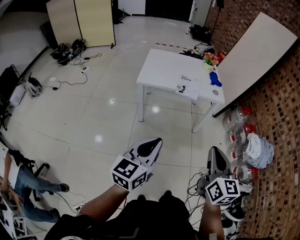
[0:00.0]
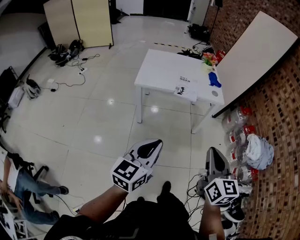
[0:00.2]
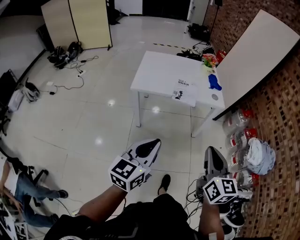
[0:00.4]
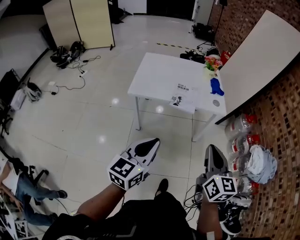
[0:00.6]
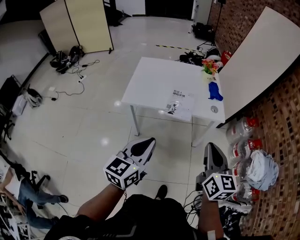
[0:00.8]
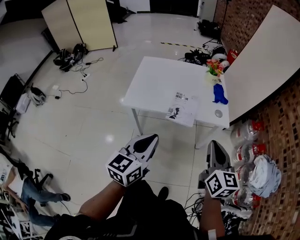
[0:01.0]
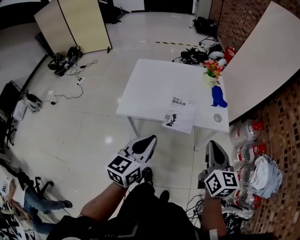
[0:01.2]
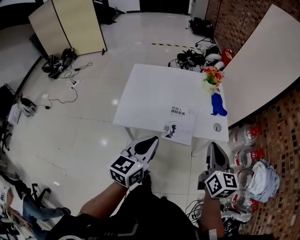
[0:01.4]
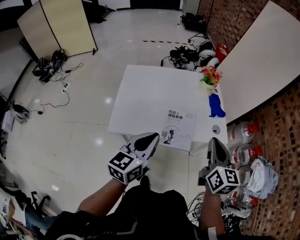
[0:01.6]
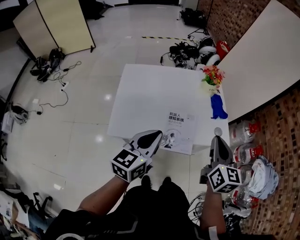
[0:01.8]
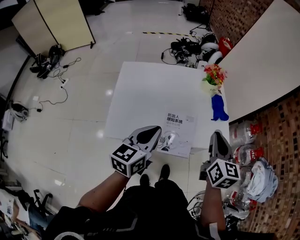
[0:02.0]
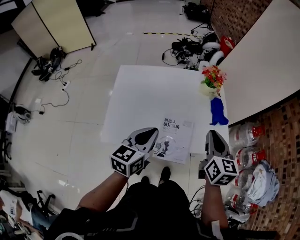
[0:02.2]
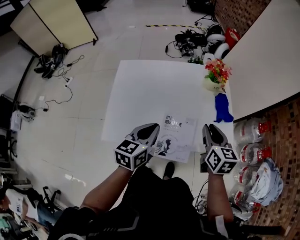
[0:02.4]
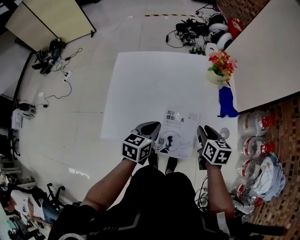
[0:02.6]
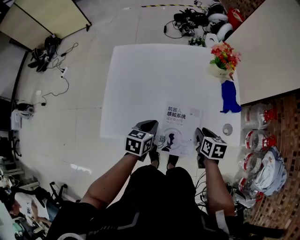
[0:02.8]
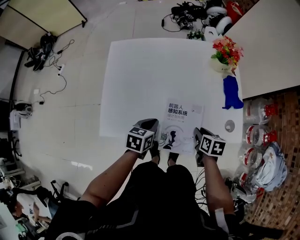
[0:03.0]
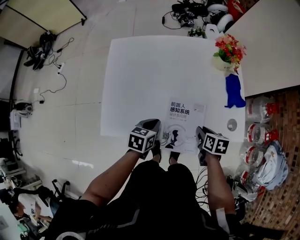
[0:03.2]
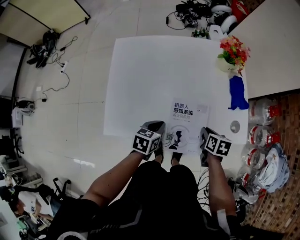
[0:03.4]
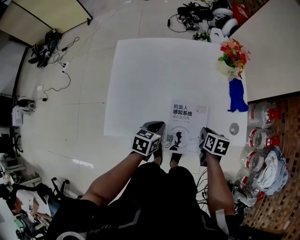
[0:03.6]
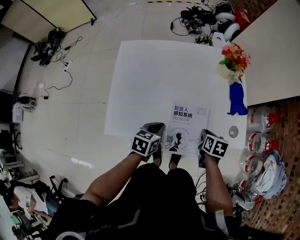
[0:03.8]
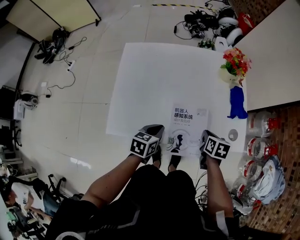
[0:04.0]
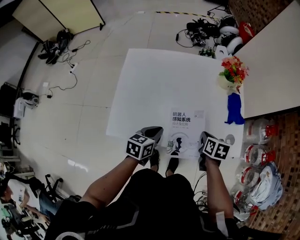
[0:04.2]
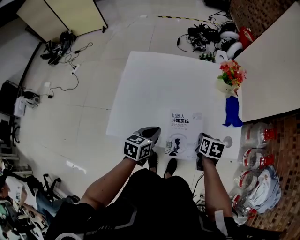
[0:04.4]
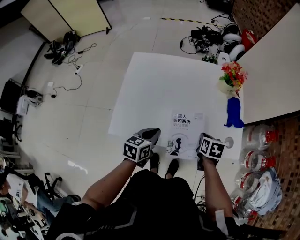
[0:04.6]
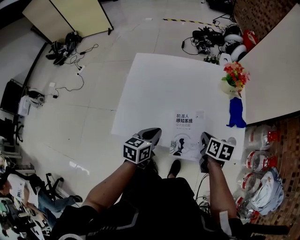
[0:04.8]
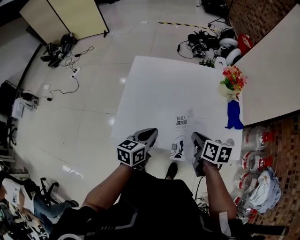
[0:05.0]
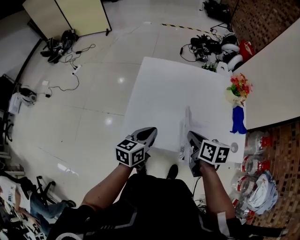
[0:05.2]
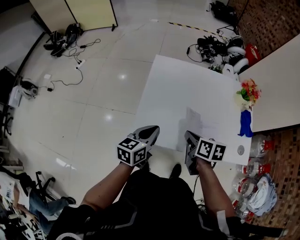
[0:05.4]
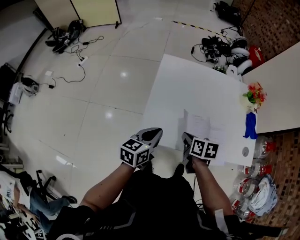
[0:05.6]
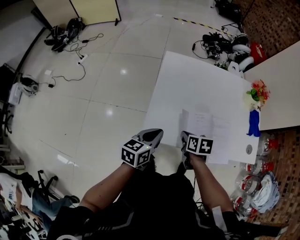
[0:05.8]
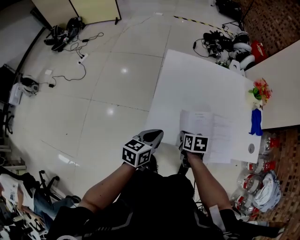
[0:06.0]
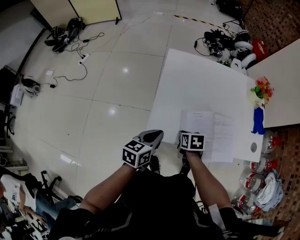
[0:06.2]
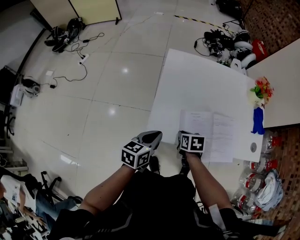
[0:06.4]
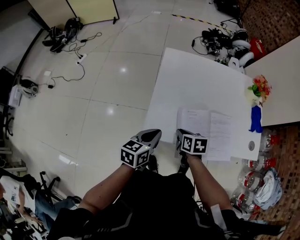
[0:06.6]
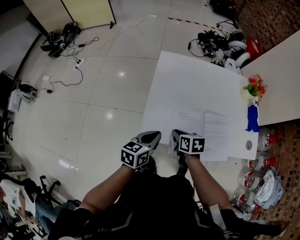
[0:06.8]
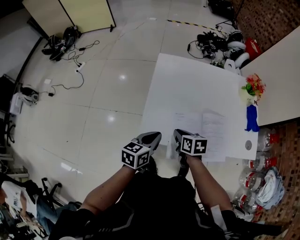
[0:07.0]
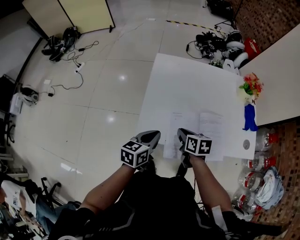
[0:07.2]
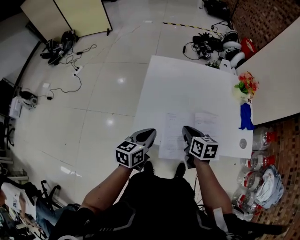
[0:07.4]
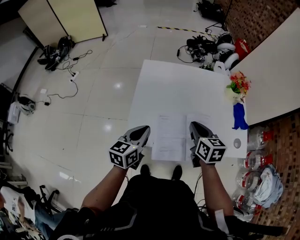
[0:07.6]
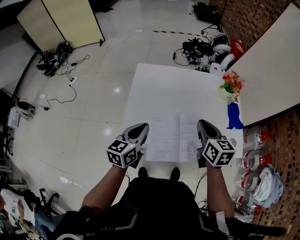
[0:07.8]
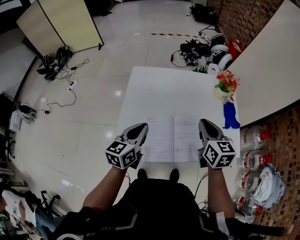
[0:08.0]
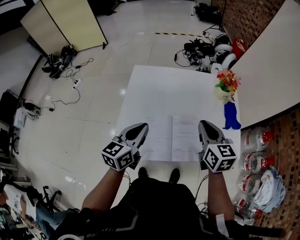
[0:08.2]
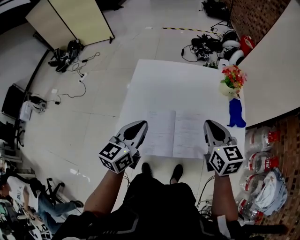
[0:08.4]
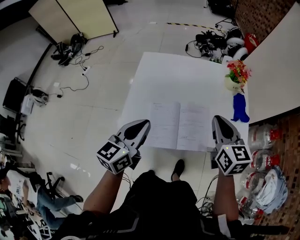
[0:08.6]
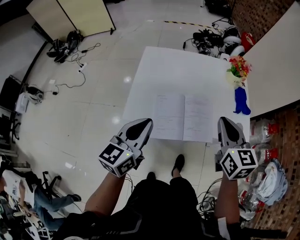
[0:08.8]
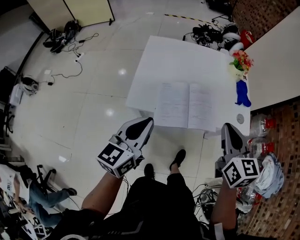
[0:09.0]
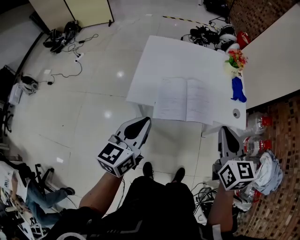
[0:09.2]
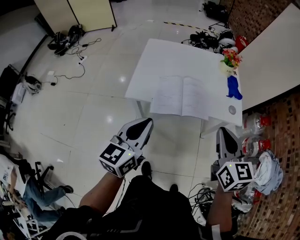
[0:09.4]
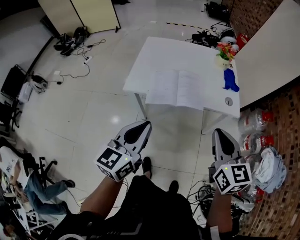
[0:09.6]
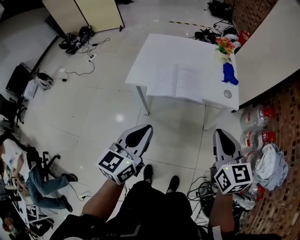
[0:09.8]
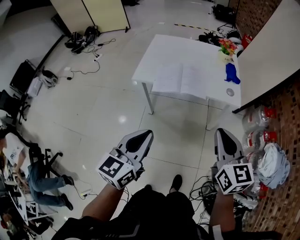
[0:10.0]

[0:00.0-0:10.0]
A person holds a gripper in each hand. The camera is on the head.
0:00.0 to 0:01.4: Both grippers are carried forward, about 50 cm.
0:01.4 to 0:02.8: The right gripper shifts some 35 cm downward and forward, tilts its fingers approximately 40 degrees downward, and opens. Meanwhile the left gripper shifts approximately 35 cm forward and downward, and tips its fingers downward by approximately 30 degrees.
0:02.8 to 0:04.2: The grippers make only small movements.
0:04.2 to 0:05.8: Both grippers move to the left, some 30 cm.
0:05.8 to 0:07.2: The grippers stay close to where they were, moving slightly.
0:07.2 to 0:08.6: The left gripper moves upward and to the right, approximately 20 cm, and turns by approximately 20 degrees, while the right gripper travels to the right and upward by approximately 30 cm, and changes its angle by roughly 40 degrees.
0:08.6 to 0:10.0: The pair of grippers is taken backward, some 40 cm.

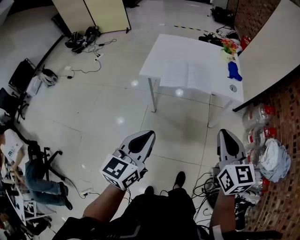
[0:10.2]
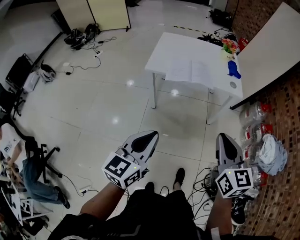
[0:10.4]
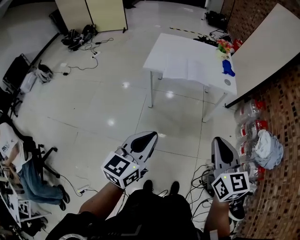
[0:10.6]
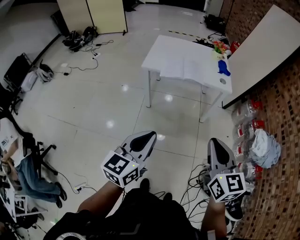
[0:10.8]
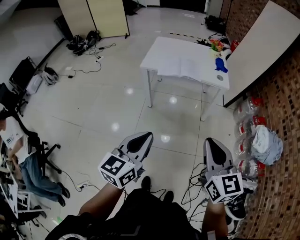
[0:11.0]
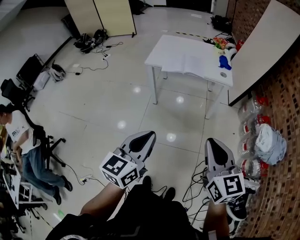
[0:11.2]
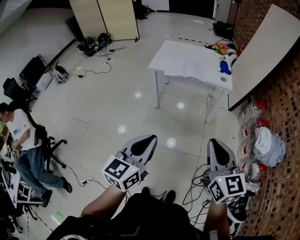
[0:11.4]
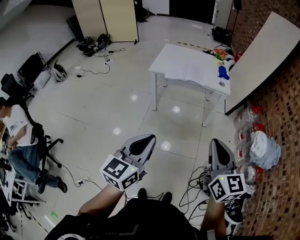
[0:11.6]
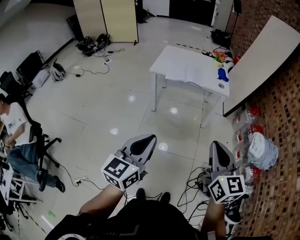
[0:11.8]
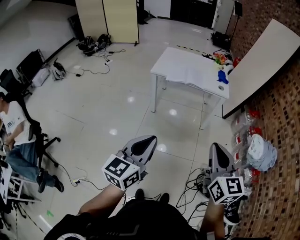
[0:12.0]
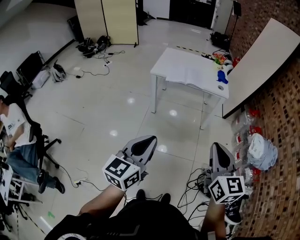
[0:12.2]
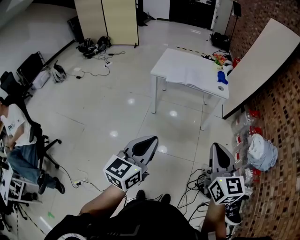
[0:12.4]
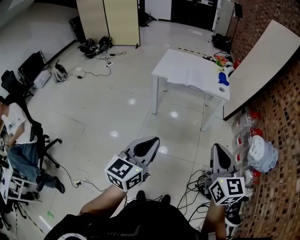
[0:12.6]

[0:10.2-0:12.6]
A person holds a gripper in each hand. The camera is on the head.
0:10.2 to 0:11.4: Both grippers travel together backward, approximately 30 cm.
0:11.4 to 0:12.6: The left gripper ends up some 5 cm from where it was, while the right gripper shifts by roughly 5 cm.

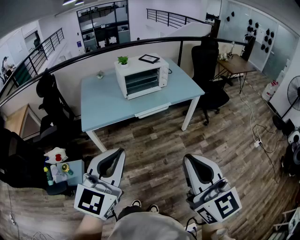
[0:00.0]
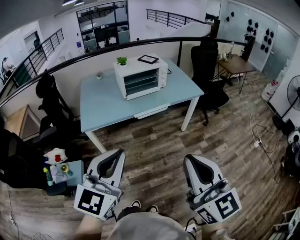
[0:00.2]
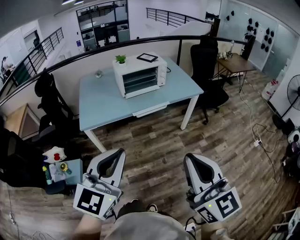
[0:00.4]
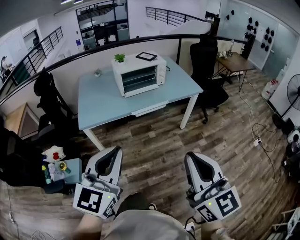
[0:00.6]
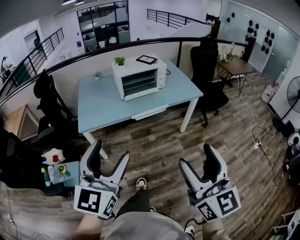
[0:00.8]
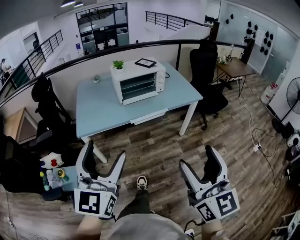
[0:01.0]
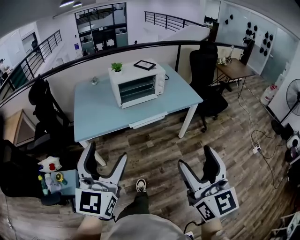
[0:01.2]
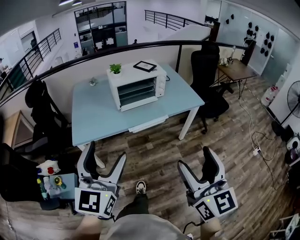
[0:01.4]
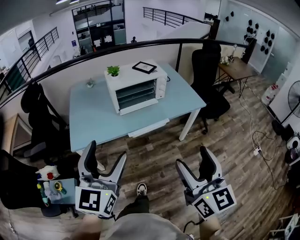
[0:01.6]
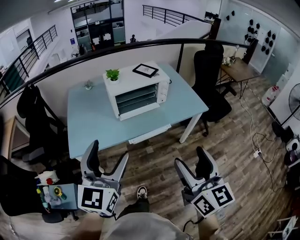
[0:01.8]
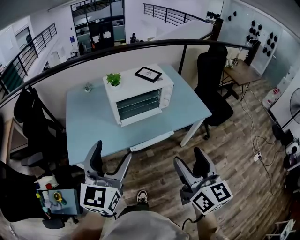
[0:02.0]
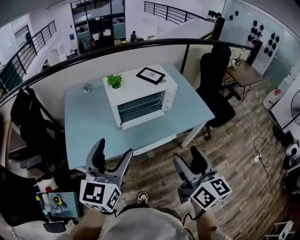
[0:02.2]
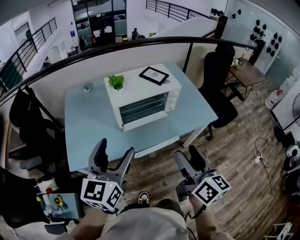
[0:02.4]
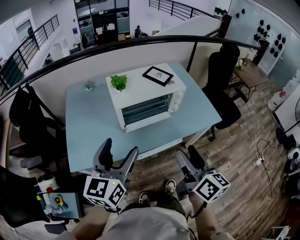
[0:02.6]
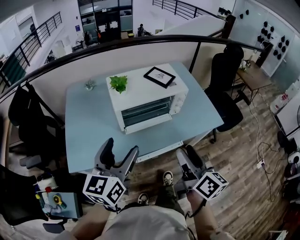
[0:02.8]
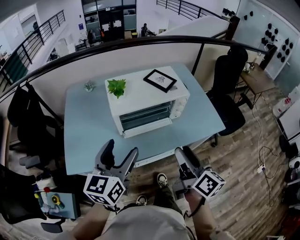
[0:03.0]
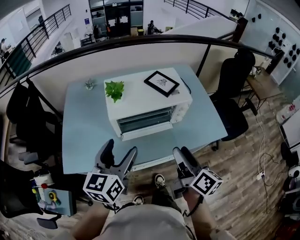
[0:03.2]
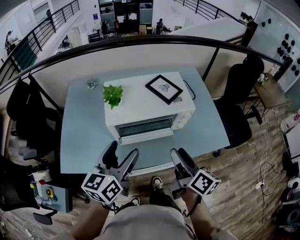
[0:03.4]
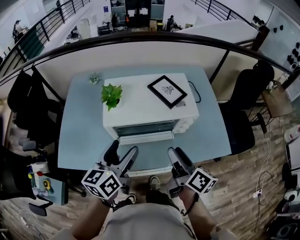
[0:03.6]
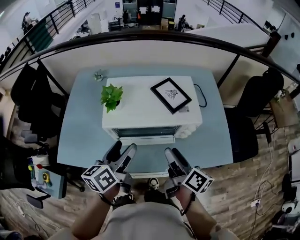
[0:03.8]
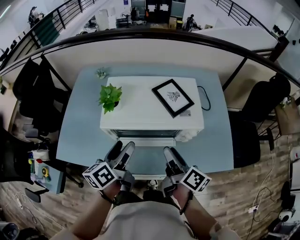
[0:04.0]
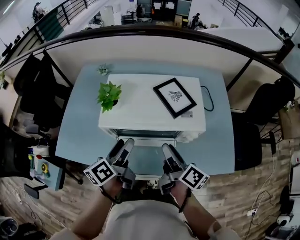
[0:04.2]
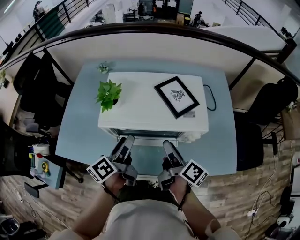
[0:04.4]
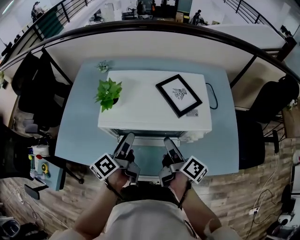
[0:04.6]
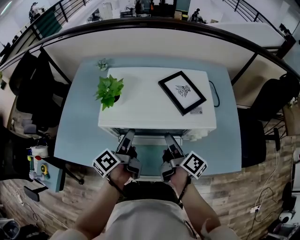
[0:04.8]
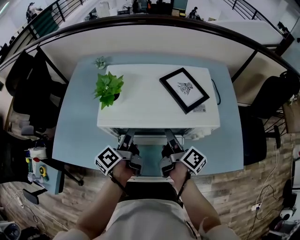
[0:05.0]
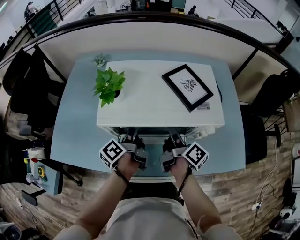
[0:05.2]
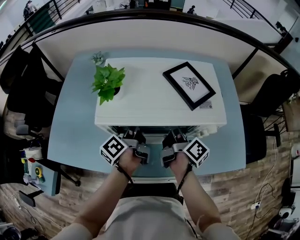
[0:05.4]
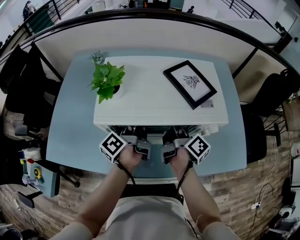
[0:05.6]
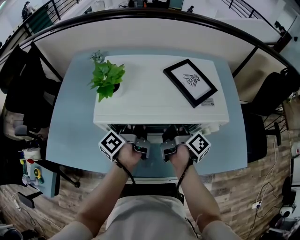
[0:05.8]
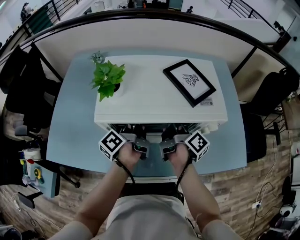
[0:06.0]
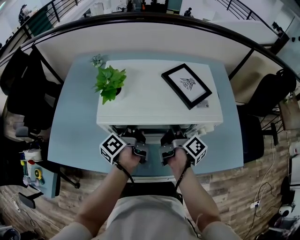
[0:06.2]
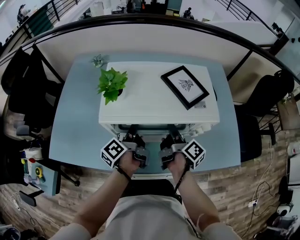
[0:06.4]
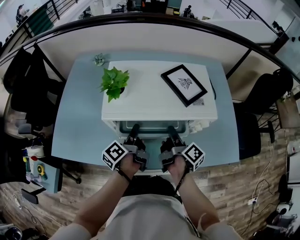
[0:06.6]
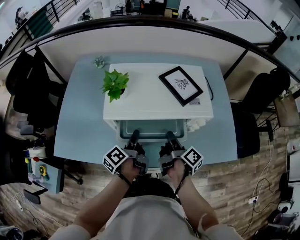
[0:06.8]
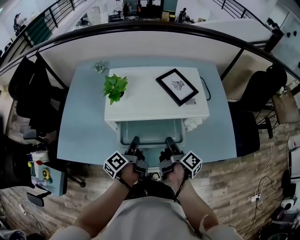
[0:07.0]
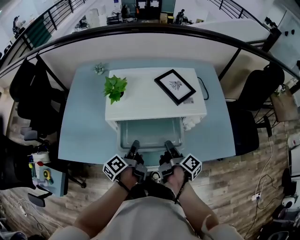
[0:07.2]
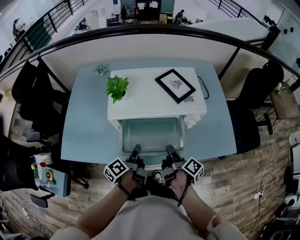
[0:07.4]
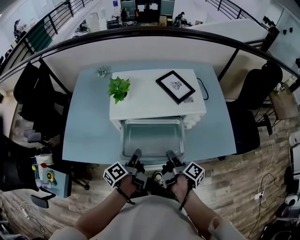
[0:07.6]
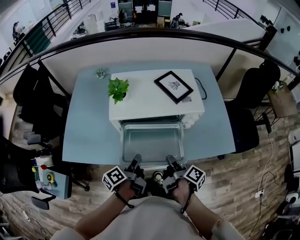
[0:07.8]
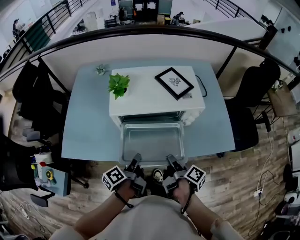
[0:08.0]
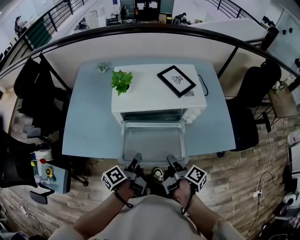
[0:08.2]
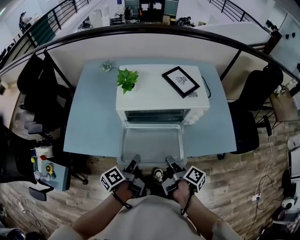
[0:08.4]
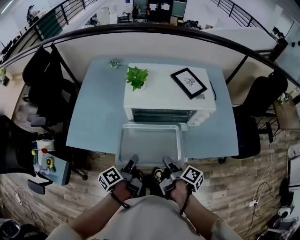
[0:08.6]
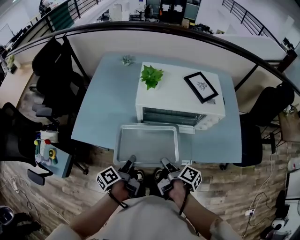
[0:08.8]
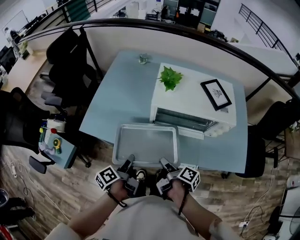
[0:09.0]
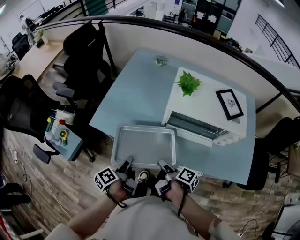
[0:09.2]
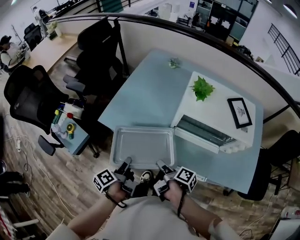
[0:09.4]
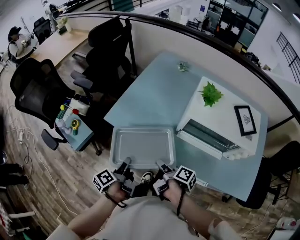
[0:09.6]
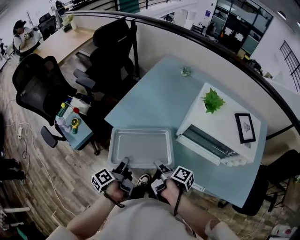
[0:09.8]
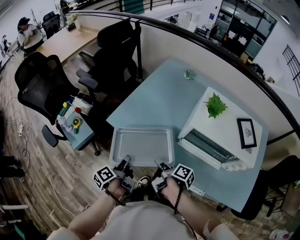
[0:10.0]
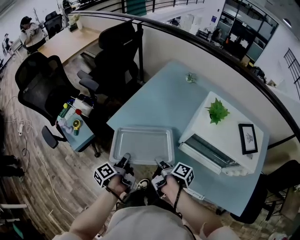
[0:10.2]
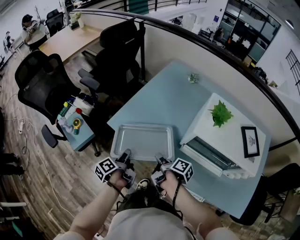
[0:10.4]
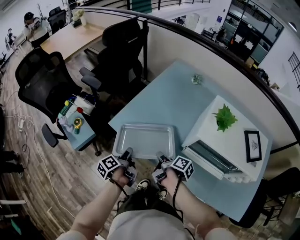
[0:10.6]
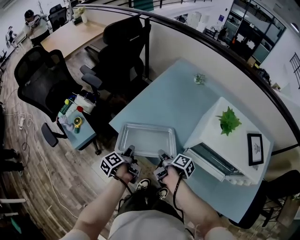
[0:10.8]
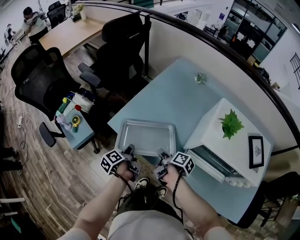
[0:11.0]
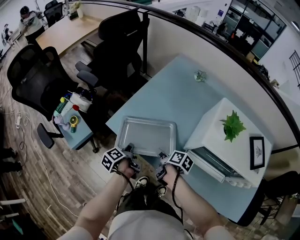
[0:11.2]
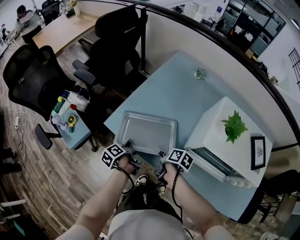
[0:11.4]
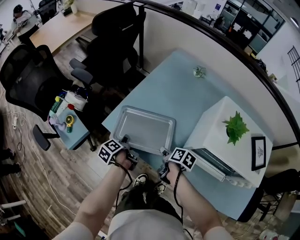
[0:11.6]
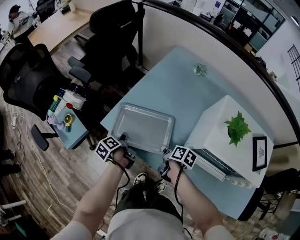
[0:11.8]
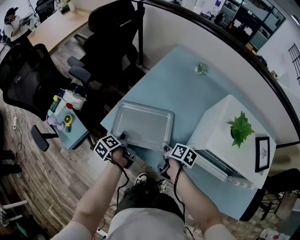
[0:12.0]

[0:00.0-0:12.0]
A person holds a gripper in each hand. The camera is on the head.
0:00.0 to 0:01.6: Both grippers move forward, about 20 cm. The left gripper opens its fingers; the right gripper opens up.
0:01.6 to 0:03.0: Both grippers travel together forward, some 35 cm. The left gripper rotates about 20 degrees. Meanwhile the right gripper twists about 40 degrees clockwise, seen from behind.
0:03.0 to 0:04.4: The two grippers go approximately 25 cm forward and downward. The left gripper rolls counterclockwise, seen from behind, by approximately 50 degrees. Meanwhile the right gripper swivels some 30 degrees.
0:04.4 to 0:06.0: Both grippers move forward and downward, about 15 cm. The left gripper closes.
0:06.0 to 0:07.6: The two grippers go approximately 20 cm backward.
0:07.6 to 0:09.0: The grippers both shift to the left and backward by about 15 cm. The right gripper changes its angle by about 20 degrees.
0:09.0 to 0:10.4: The right gripper ends up about 20 cm from where it was, and rotates about 20 degrees. The left gripper changes place by about 15 cm, and rotates about 30 degrees.
0:10.4 to 0:12.0: The grippers both shift forward and downward by roughly 15 cm. The right gripper changes its angle by approximately 30 degrees.
